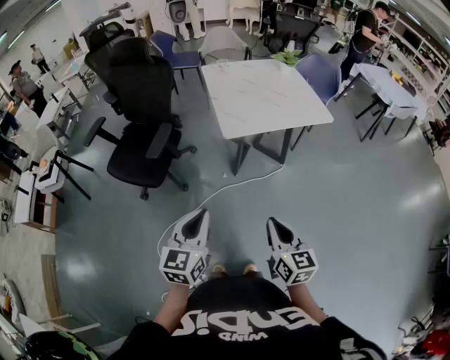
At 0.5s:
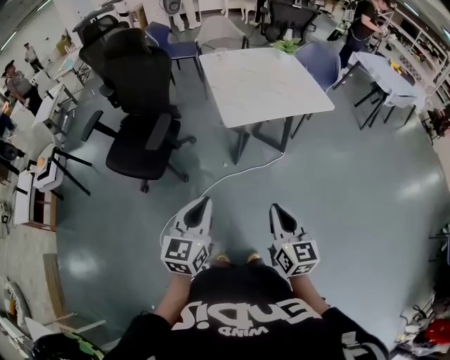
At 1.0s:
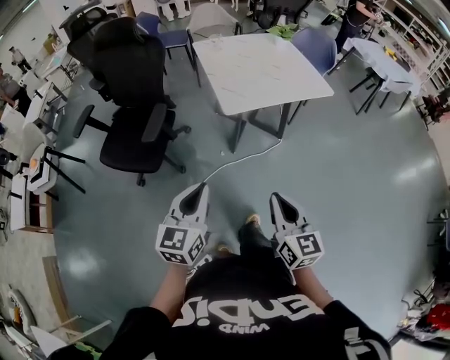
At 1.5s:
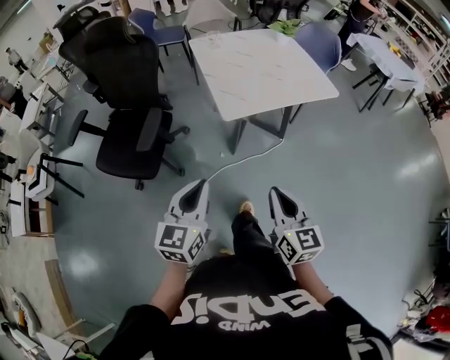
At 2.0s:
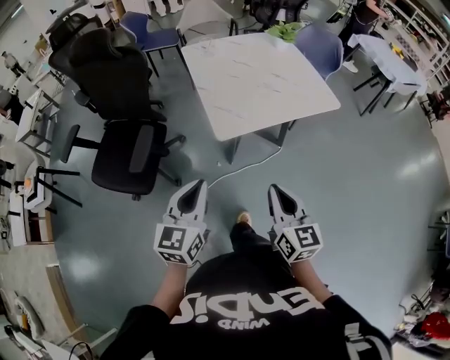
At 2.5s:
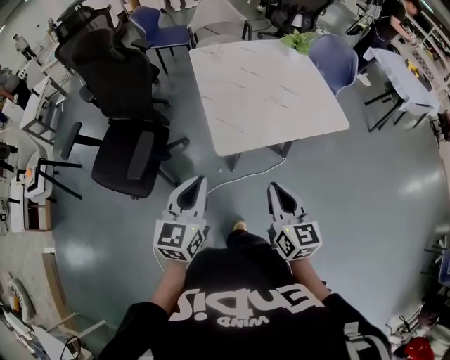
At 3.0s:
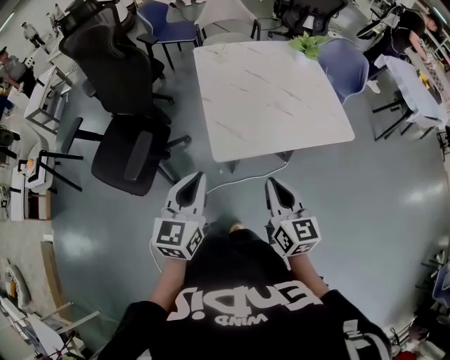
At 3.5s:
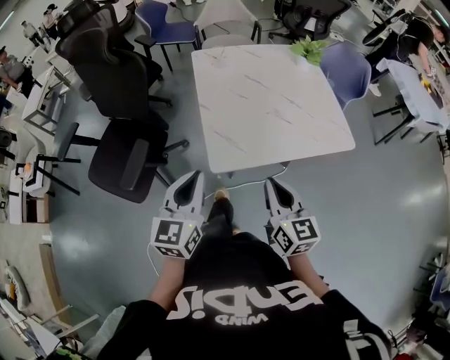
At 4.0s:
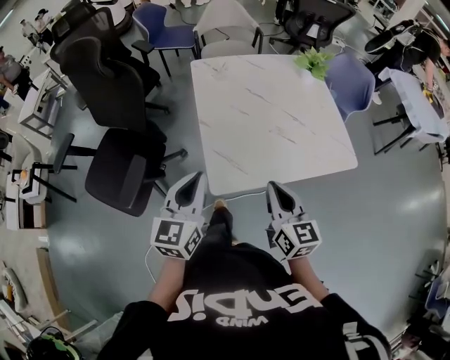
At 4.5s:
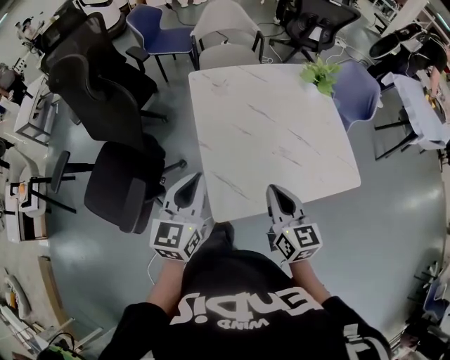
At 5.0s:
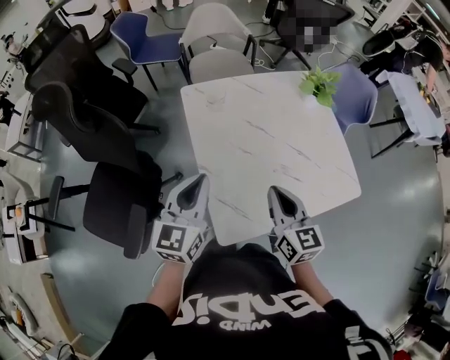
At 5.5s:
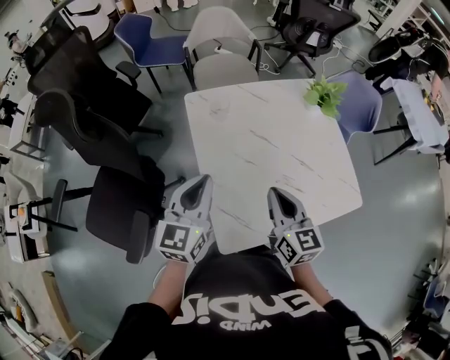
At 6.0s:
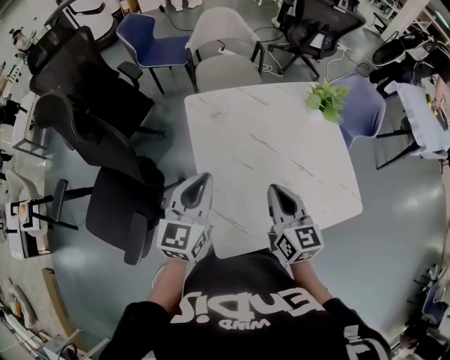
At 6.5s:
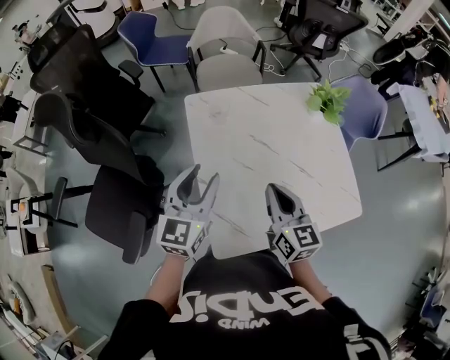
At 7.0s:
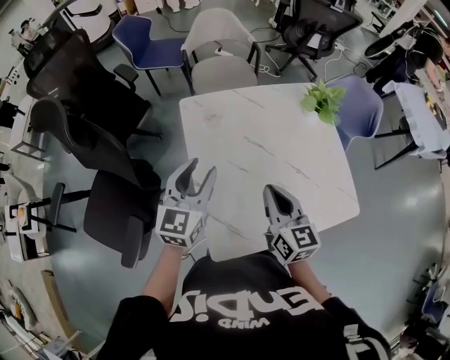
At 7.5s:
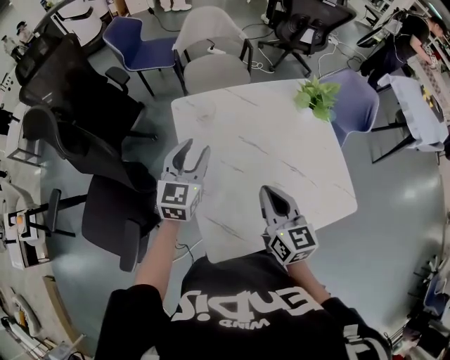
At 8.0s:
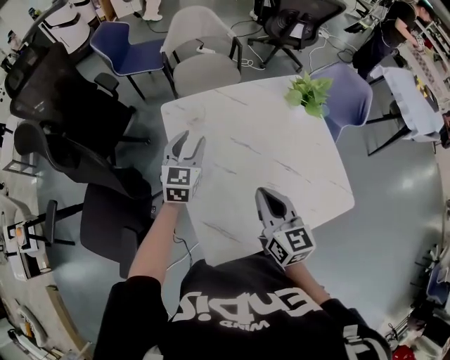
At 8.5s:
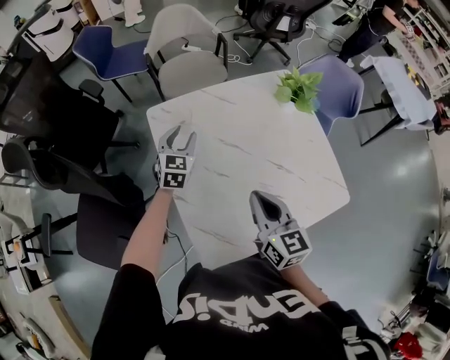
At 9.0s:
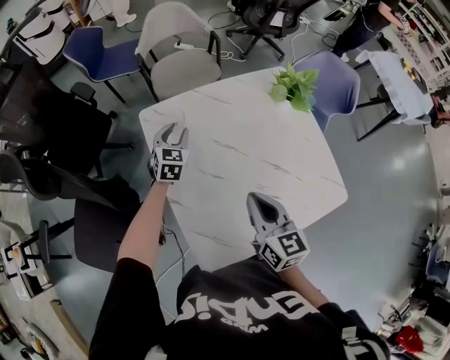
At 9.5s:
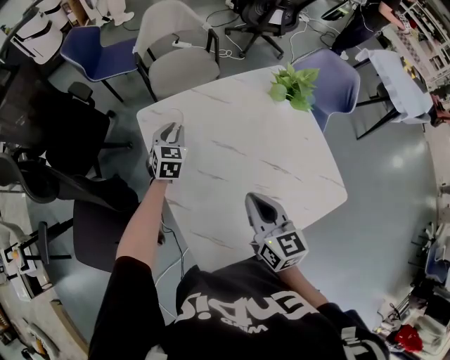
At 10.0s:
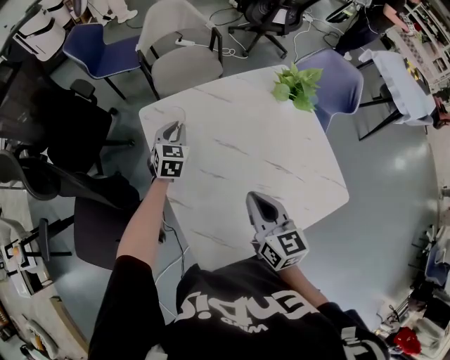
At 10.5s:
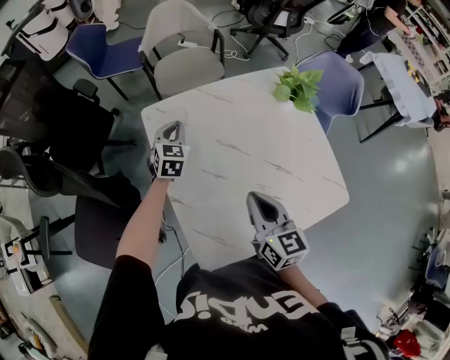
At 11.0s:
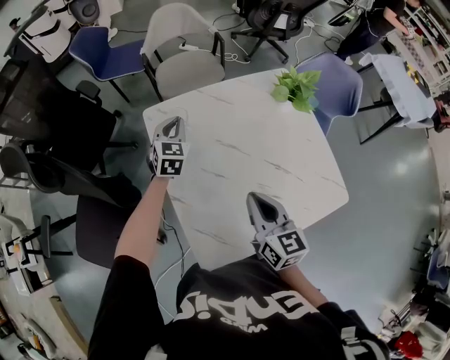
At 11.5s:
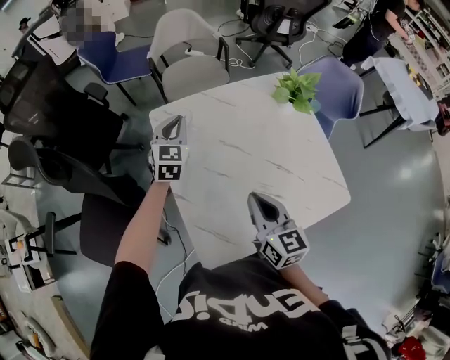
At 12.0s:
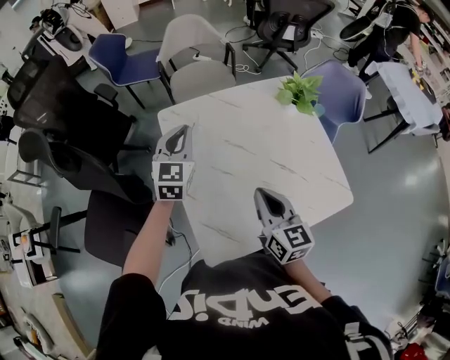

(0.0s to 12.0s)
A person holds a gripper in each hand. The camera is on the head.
0.0s - 2.0s: The two grippers go about 20 cm forward.
2.0s - 4.0s: Both grippers travel together forward, some 25 cm.
4.0s - 6.0s: The grippers both shift forward by about 25 cm.
6.0s - 8.0s: The left gripper goes approximately 20 cm forward and downward, and opens up.
8.0s - 10.0s: The left gripper is displaced forward and downward by about 15 cm, and closes.
10.0s - 12.0s: The left gripper travels upward and backward by roughly 20 cm.

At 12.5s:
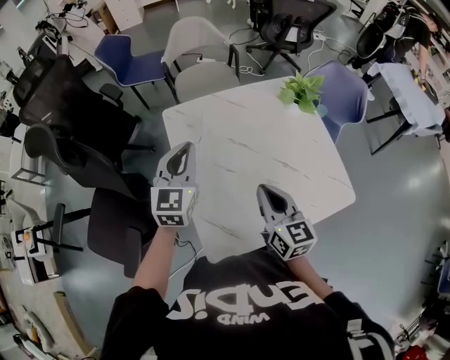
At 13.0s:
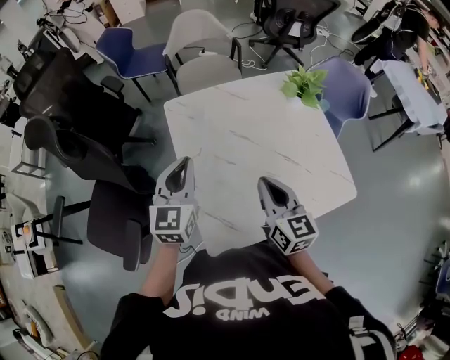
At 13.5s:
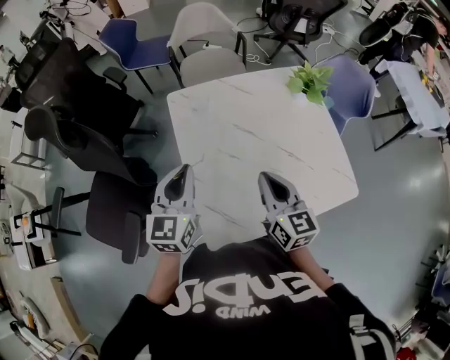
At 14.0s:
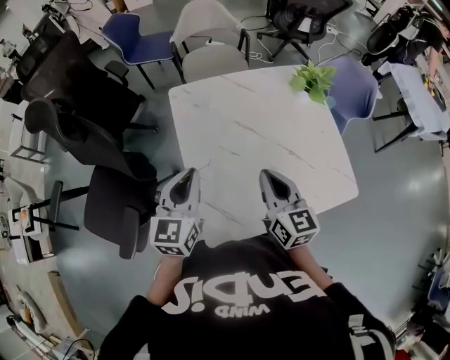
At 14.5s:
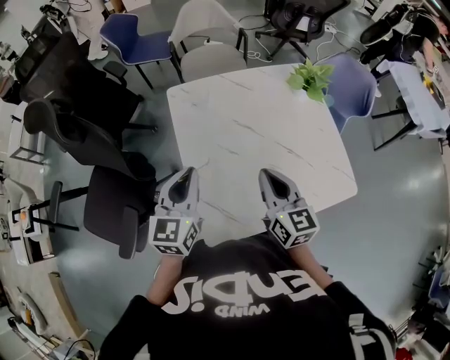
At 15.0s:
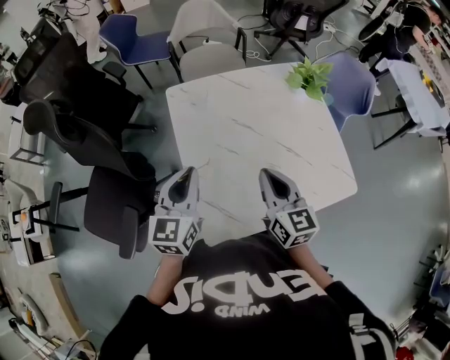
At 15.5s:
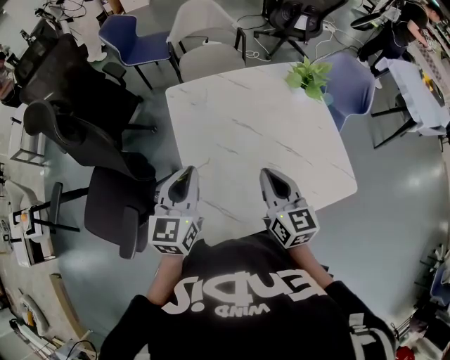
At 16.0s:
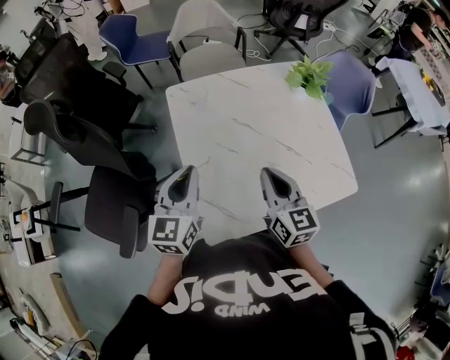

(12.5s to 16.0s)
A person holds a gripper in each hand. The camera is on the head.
12.5s - 14.5s: The left gripper moves backward, some 10 cm.
14.5s - 16.0s: Both grippers stay put.

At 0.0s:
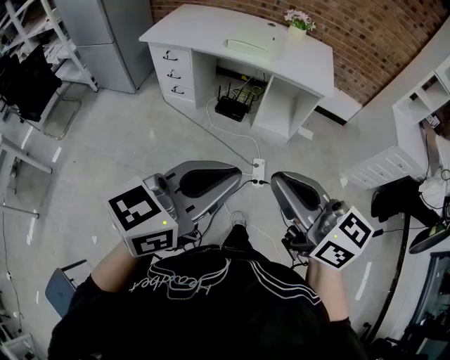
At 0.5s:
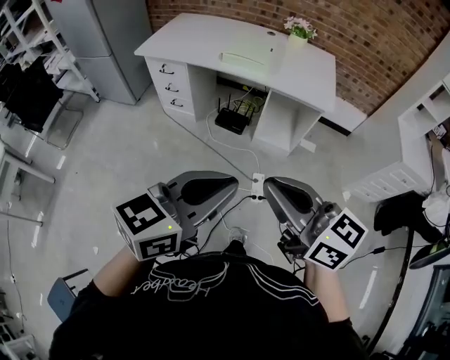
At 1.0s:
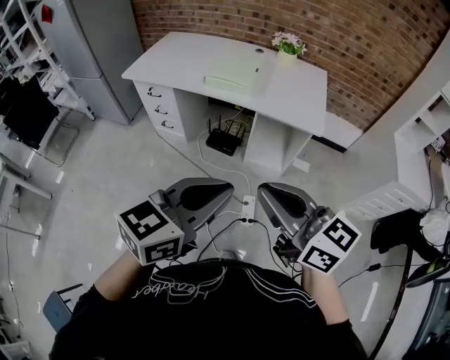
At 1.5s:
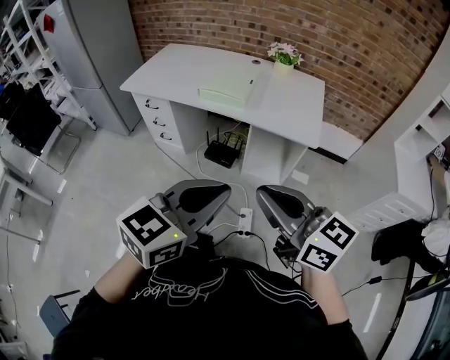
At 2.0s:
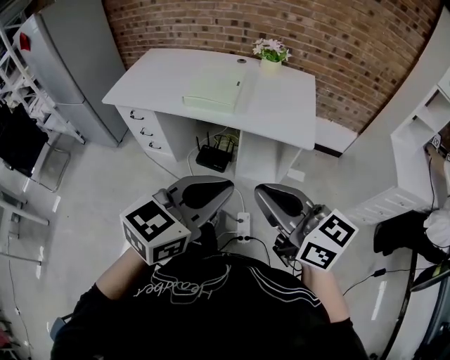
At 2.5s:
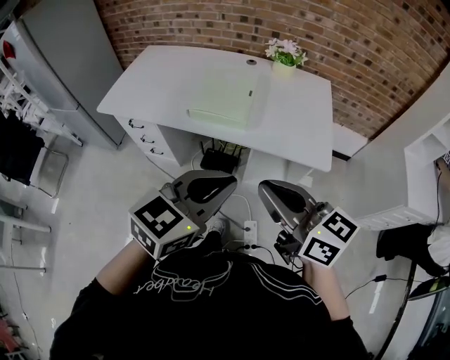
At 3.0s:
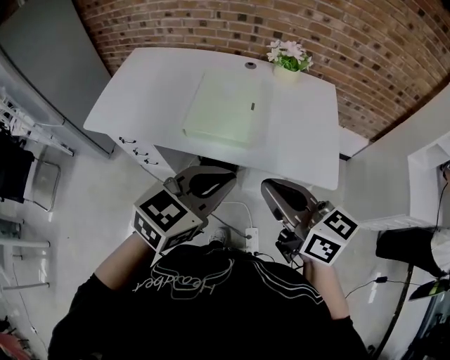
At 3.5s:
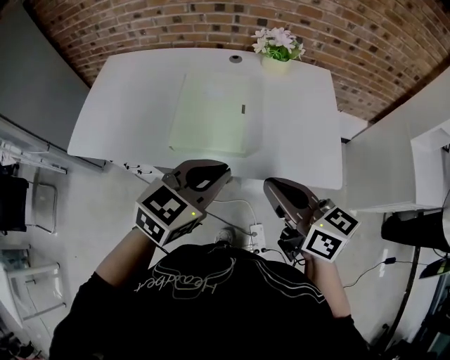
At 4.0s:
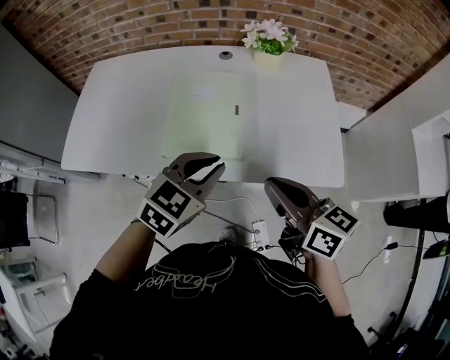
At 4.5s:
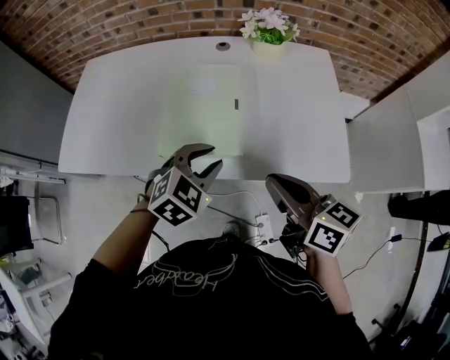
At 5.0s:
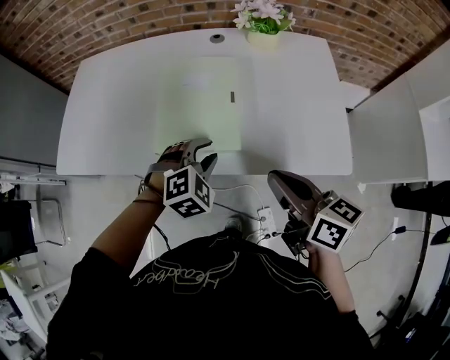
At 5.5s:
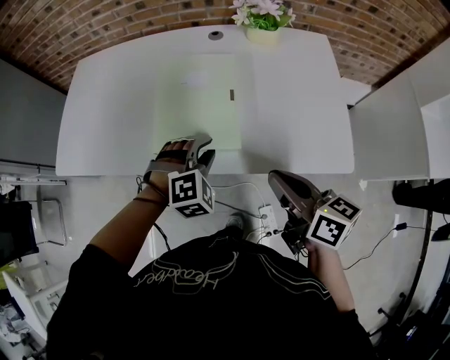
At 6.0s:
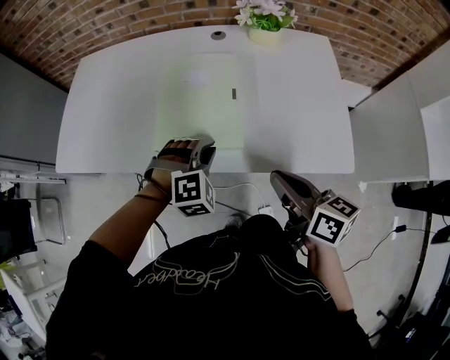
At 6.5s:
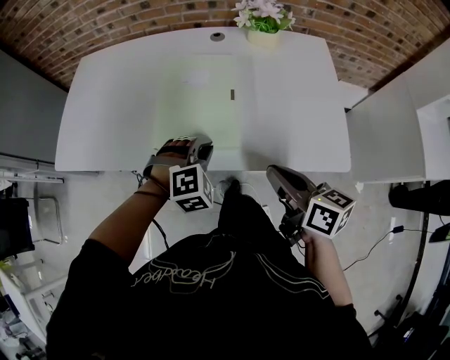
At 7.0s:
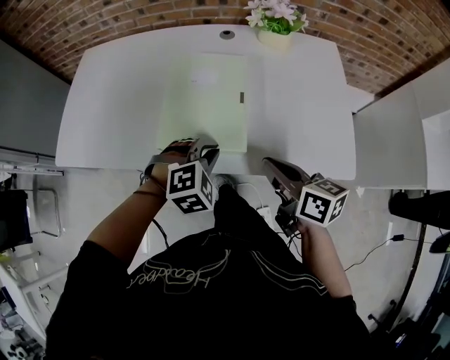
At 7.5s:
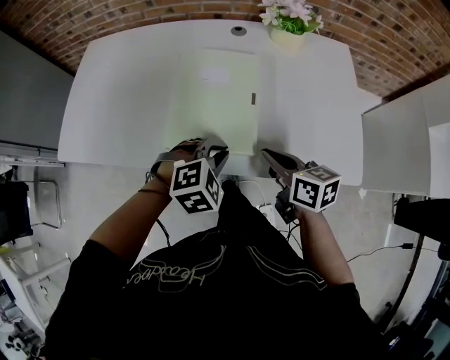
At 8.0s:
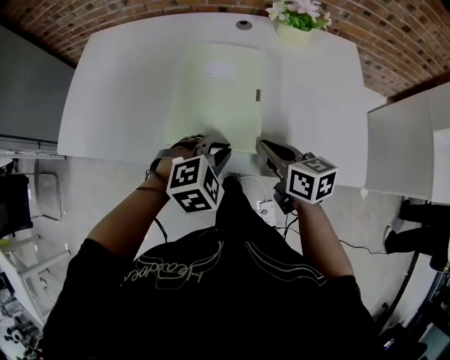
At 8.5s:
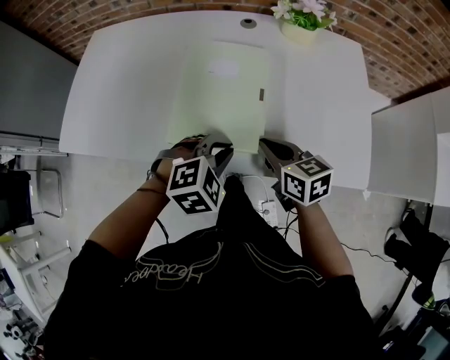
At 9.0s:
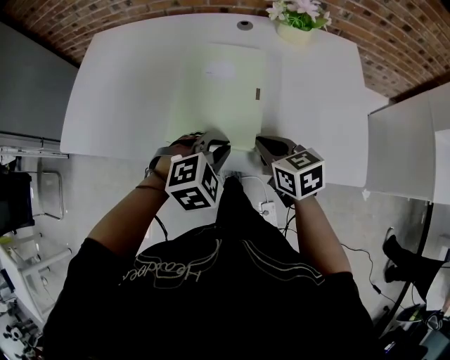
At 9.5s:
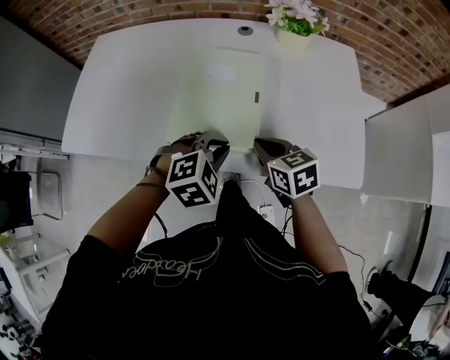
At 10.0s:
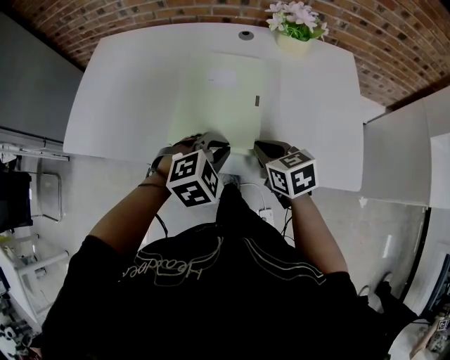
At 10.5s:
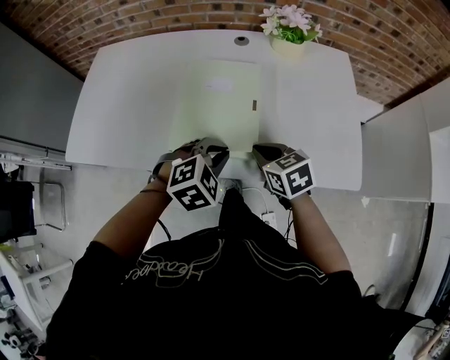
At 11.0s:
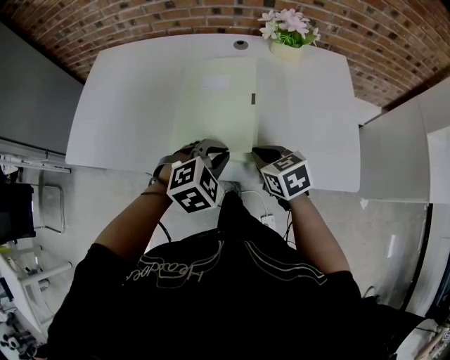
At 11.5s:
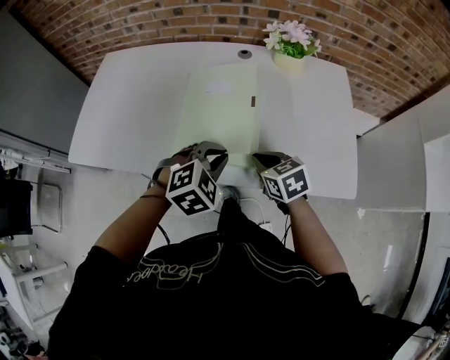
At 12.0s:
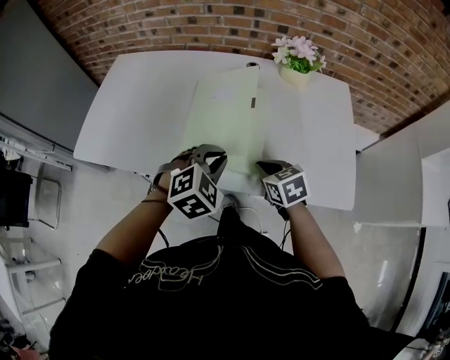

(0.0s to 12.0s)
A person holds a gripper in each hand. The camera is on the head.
0.0s - 2.0s: Both grippers move forward and to the right, roughly 30 cm.
2.0s - 4.0s: The grippers both shift forward by about 40 cm. The left gripper turns by approximately 20 degrees. The right gripper changes its angle by approximately 30 degrees.
4.0s - 6.0s: The right gripper travels downward by roughly 10 cm; the left gripper shifts approximately 15 cm downward, and rolls clockwise, seen from behind, by approximately 50 degrees.
6.0s - 8.0s: The right gripper heads forward, downward and to the left, covering roughly 15 cm, while the left gripper turns by some 20 degrees.
8.0s - 10.0s: The right gripper changes its angle by approximately 20 degrees.
10.0s - 12.0s: The left gripper shifts by approximately 5 cm.
